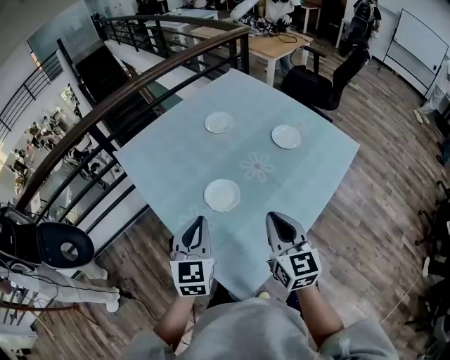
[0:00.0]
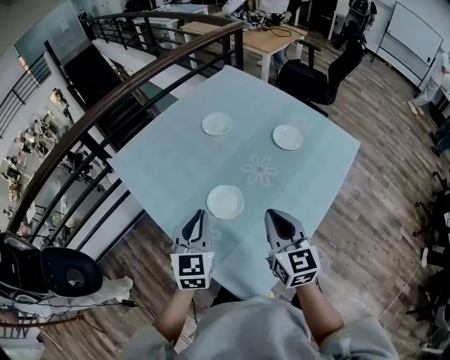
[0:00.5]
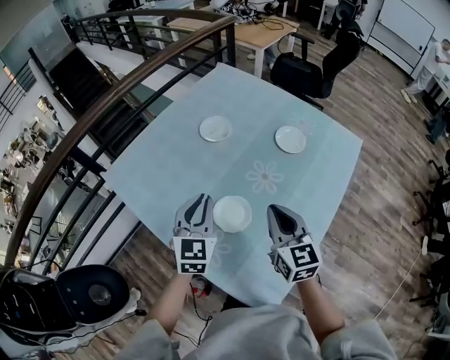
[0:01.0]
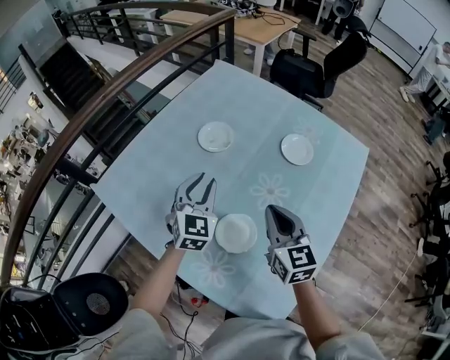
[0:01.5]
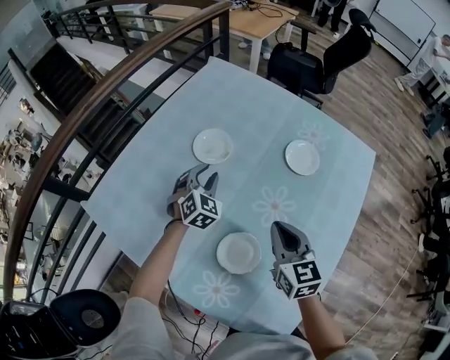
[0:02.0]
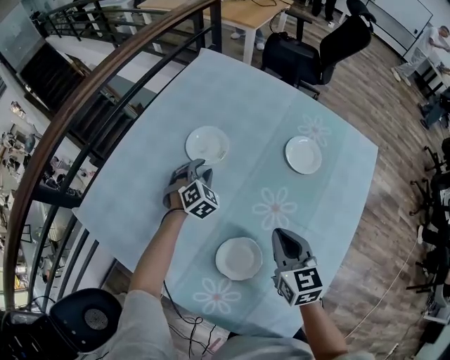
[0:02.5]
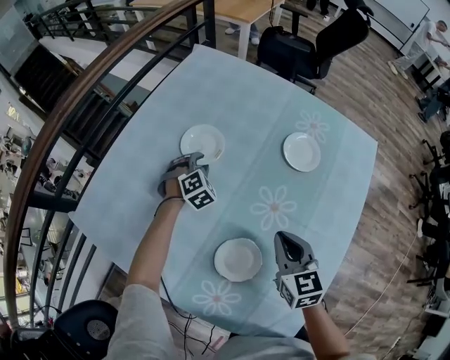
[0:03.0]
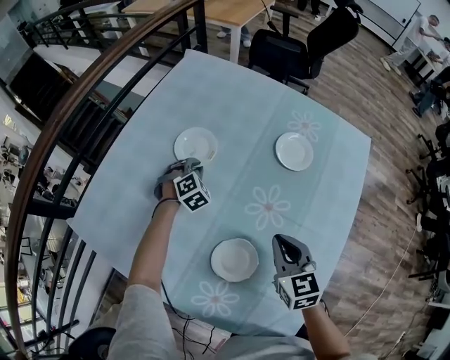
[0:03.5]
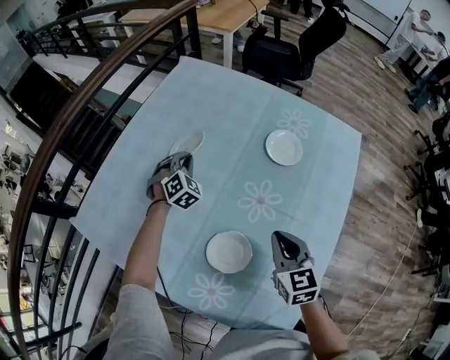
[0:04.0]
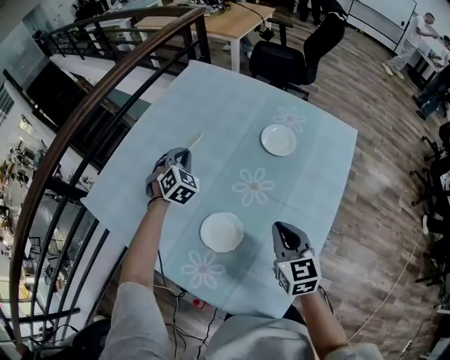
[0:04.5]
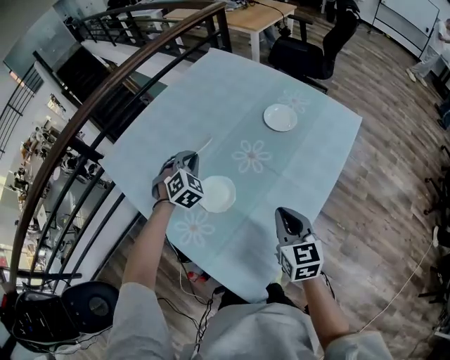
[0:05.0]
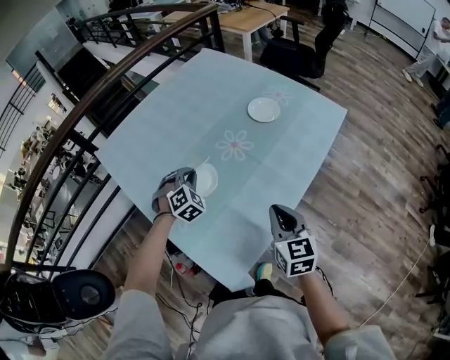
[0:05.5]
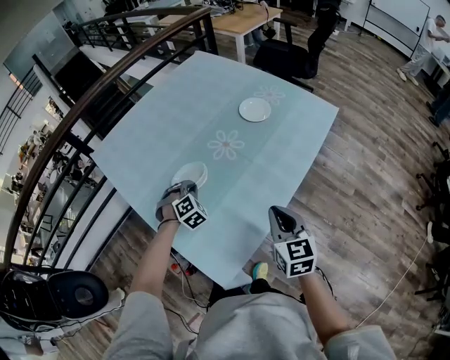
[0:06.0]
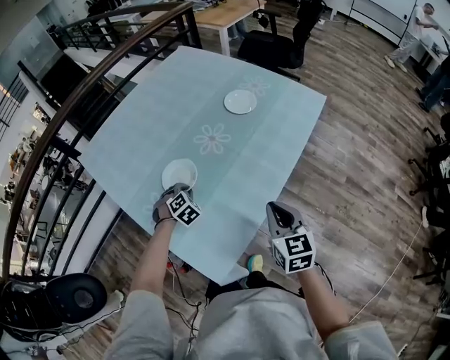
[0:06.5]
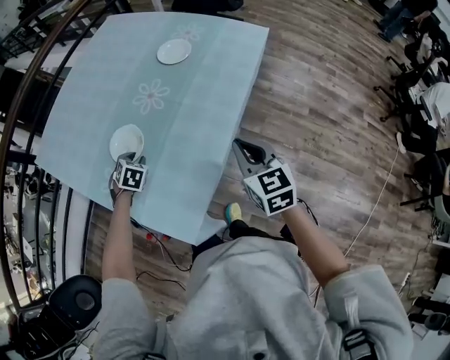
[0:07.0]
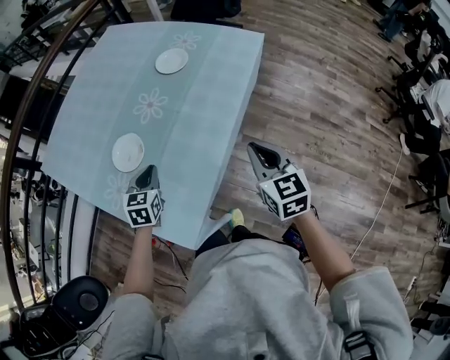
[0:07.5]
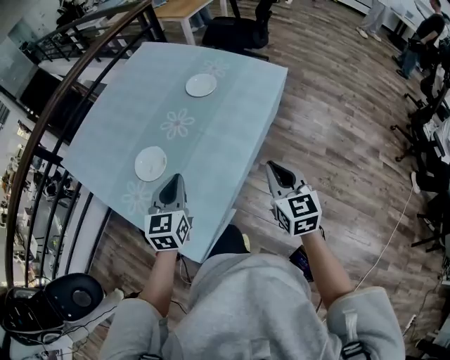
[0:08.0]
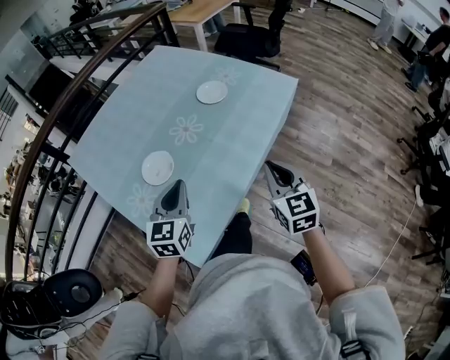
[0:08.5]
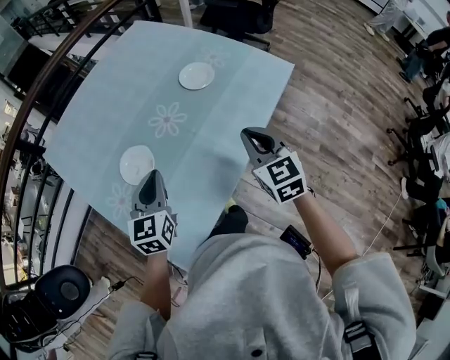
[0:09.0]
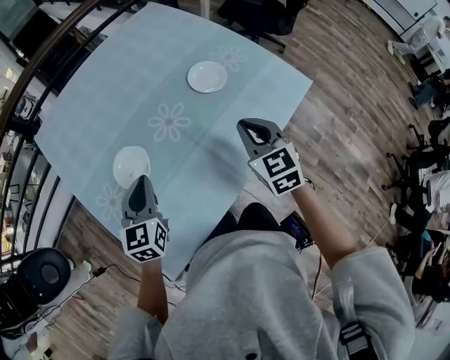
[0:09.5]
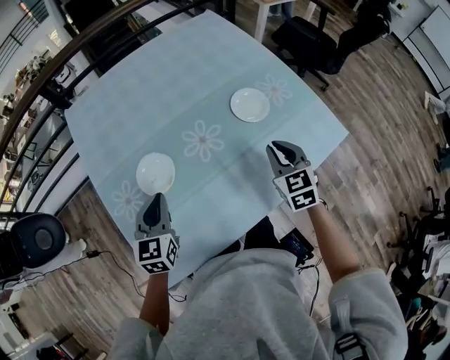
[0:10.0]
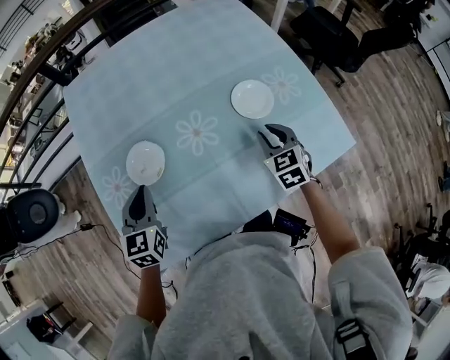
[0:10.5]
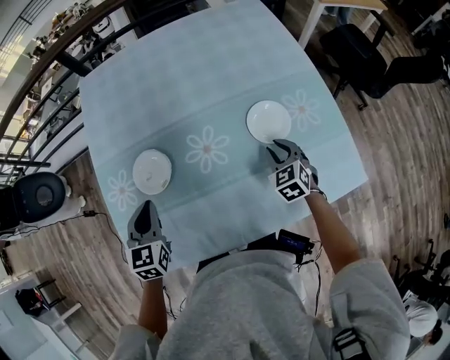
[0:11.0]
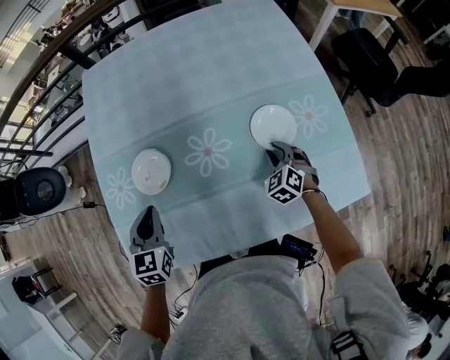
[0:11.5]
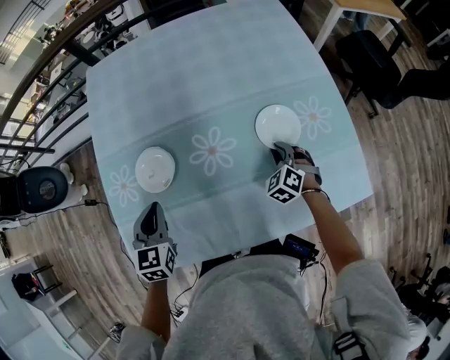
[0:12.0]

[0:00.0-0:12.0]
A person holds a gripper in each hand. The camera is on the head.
0:00.0 to 0:02.0: The left gripper moves forward and downward, about 50 cm, swivels approximately 40 degrees, and opens its fingers, while the right gripper shifts roughly 25 cm forward and downward, and turns by approximately 20 degrees.
0:02.0 to 0:04.0: The left gripper moves forward, roughly 5 cm, goes downward and returns, approximately 10 cm each way, and closes up, while the right gripper shifts by some 5 cm.
0:04.0 to 0:06.0: The left gripper goes some 40 cm backward; the right gripper is displaced backward and to the right by approximately 25 cm.
0:06.0 to 0:08.0: The right gripper shifts about 15 cm to the right; the left gripper shifts roughly 25 cm upward, to the right and backward, twists about 50 degrees counterclockwise, seen from behind, and opens, then closes again.
0:08.0 to 0:10.0: The left gripper ends up about 10 cm from where it was, and rotates some 30 degrees; the right gripper ends up about 30 cm from where it was, and changes its angle by some 40 degrees.
0:10.0 to 0:12.0: The left gripper rotates some 20 degrees, while the right gripper is displaced downward and forward by some 20 cm, and twists roughly 40 degrees counterclockwise, seen from behind.

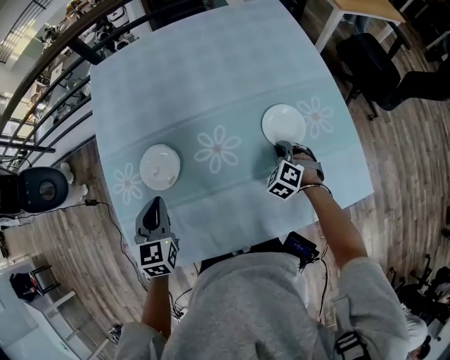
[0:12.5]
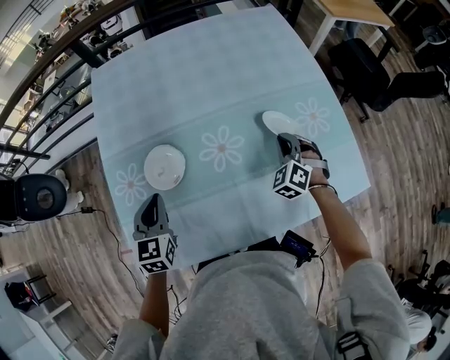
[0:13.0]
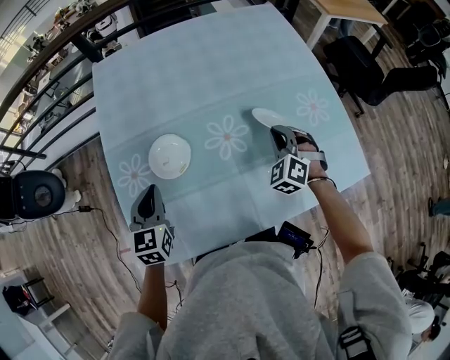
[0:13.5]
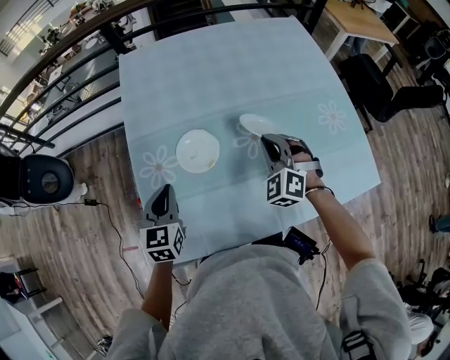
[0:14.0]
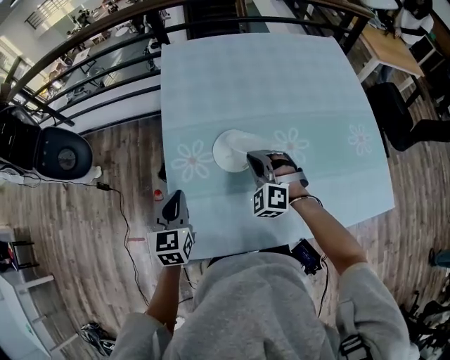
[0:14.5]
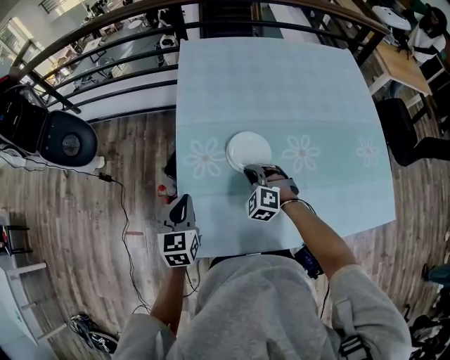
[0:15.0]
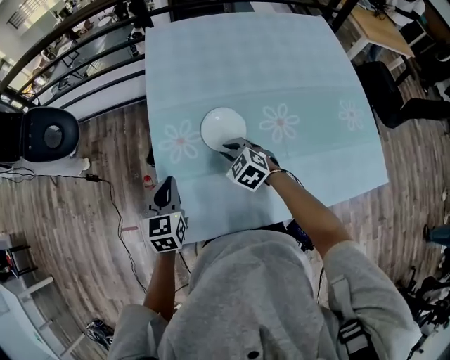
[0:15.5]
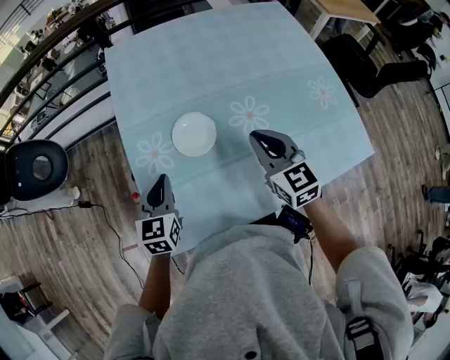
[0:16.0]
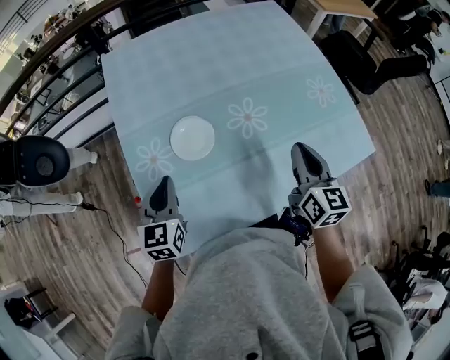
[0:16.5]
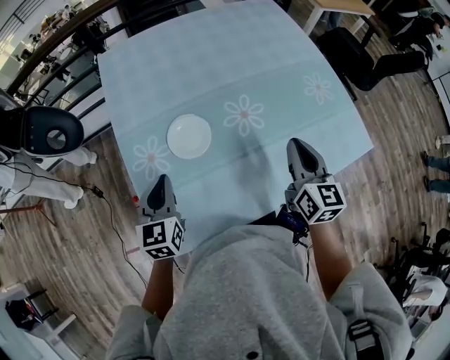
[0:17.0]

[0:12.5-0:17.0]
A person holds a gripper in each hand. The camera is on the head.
0:12.5 to 0:14.5: The right gripper travels to the left by approximately 35 cm, and turns by some 30 degrees. Meanwhile the left gripper moves to the left, about 20 cm.
0:14.5 to 0:17.0: The right gripper changes place by approximately 25 cm, and rotates around the line of its fingers by roughly 80 degrees, clockwise from behind, while the left gripper moves approximately 10 cm.

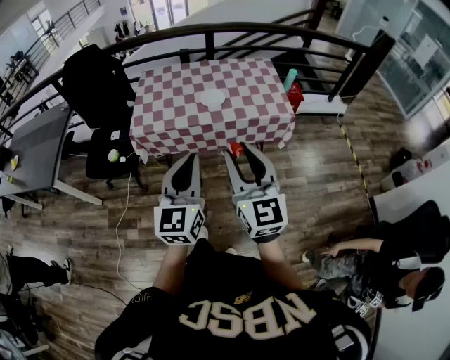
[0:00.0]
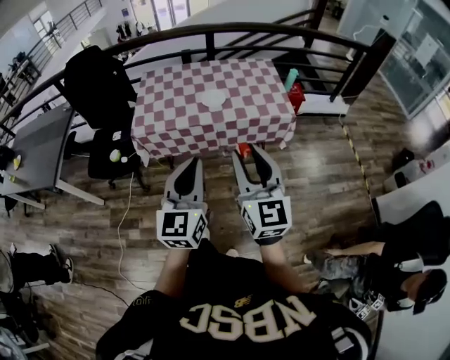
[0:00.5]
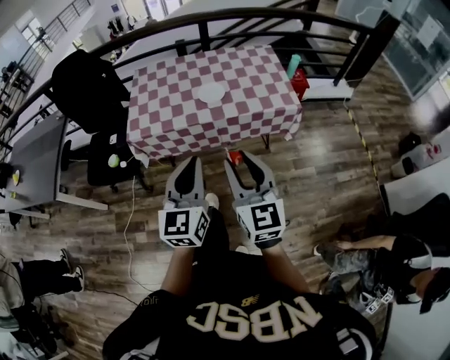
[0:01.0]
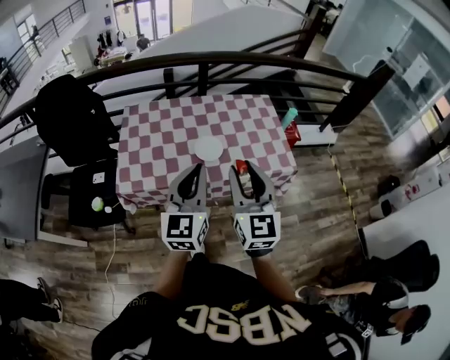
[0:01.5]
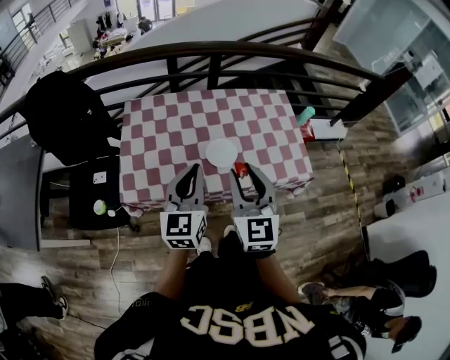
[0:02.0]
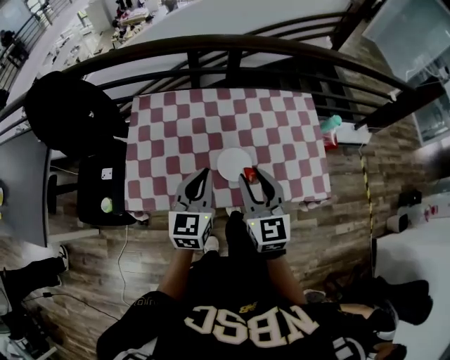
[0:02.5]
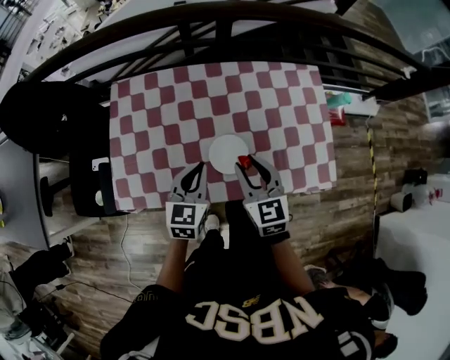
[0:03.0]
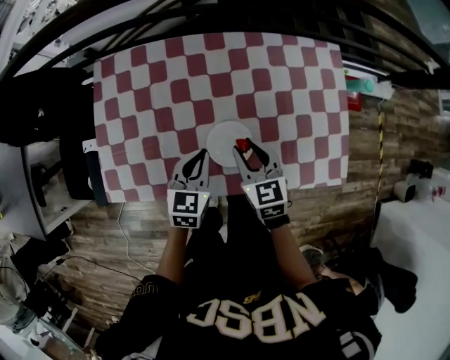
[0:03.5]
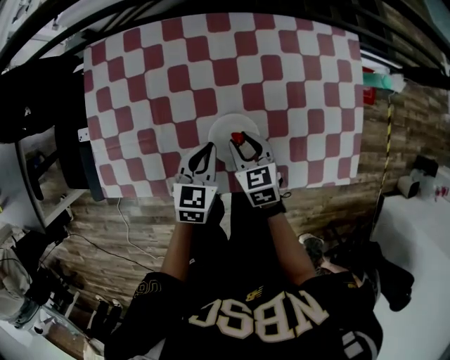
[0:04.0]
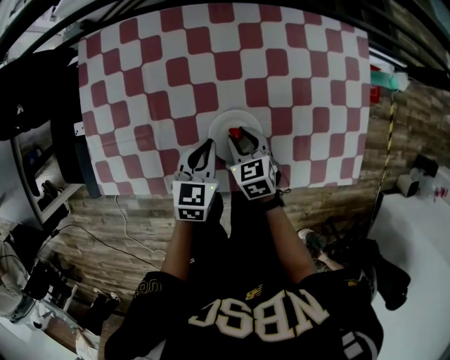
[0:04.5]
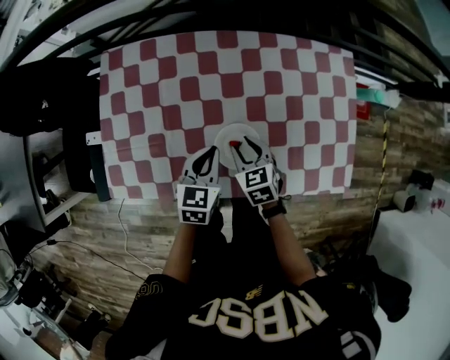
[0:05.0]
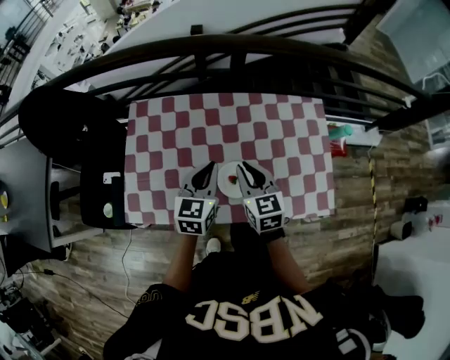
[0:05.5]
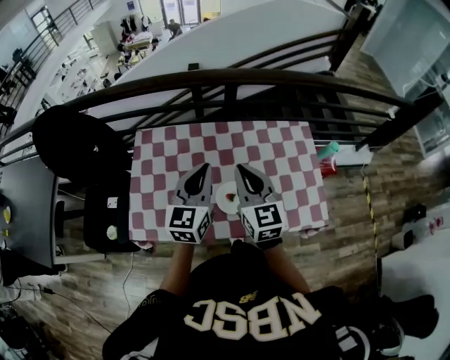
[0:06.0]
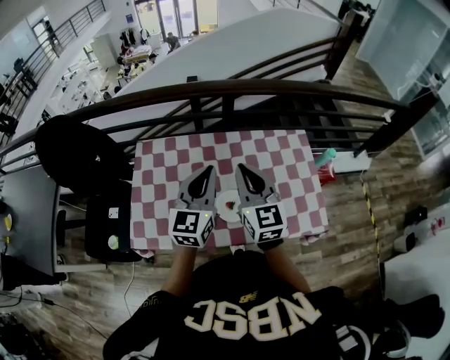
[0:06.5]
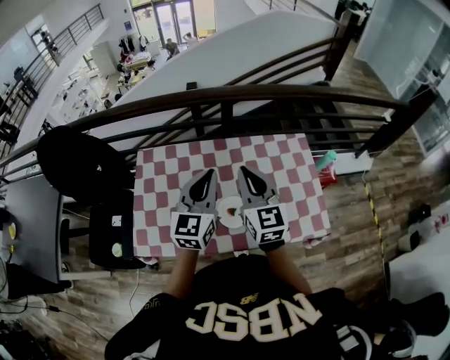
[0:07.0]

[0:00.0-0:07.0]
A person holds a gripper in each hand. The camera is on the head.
0:00.0 to 0:02.0: The two grippers go about 40 cm forward.
0:02.0 to 0:03.5: The grippers both shift downward and forward by about 35 cm. The left gripper angles its fingers downward, by approximately 30 degrees; the right gripper angles its fingers downward, by about 30 degrees.
0:03.5 to 0:05.0: The right gripper moves downward, about 10 cm.
0:05.0 to 0:07.0: The two grippers go some 35 cm upward. The left gripper angles its fingers upward, by approximately 40 degrees; the right gripper points its fingers some 50 degrees further upward, and closes.

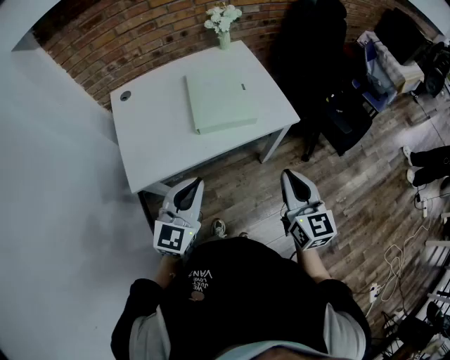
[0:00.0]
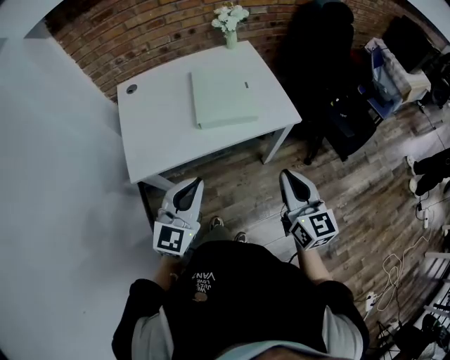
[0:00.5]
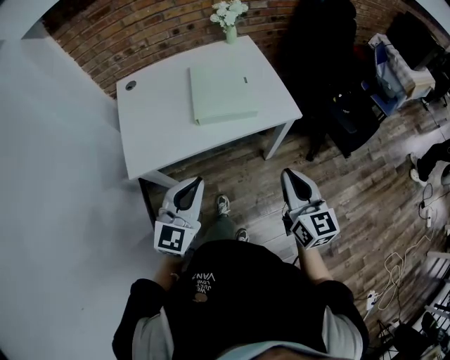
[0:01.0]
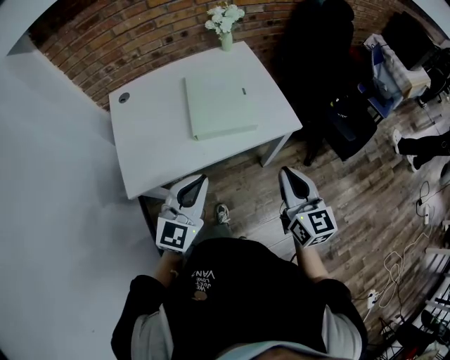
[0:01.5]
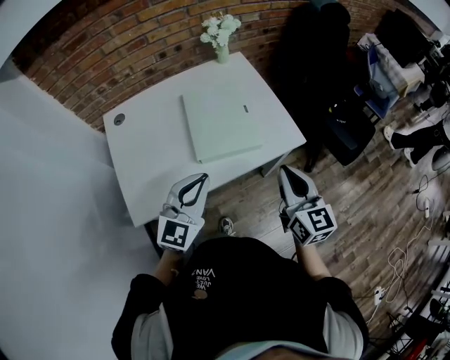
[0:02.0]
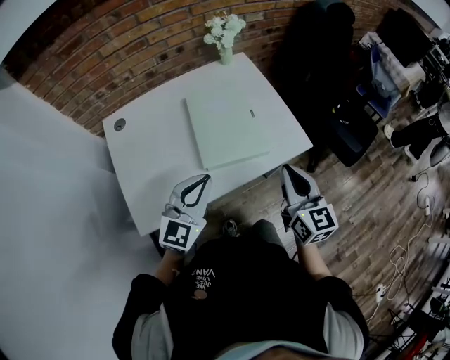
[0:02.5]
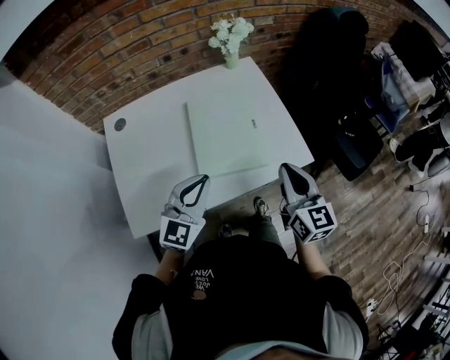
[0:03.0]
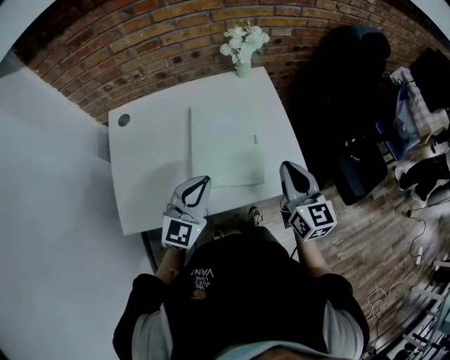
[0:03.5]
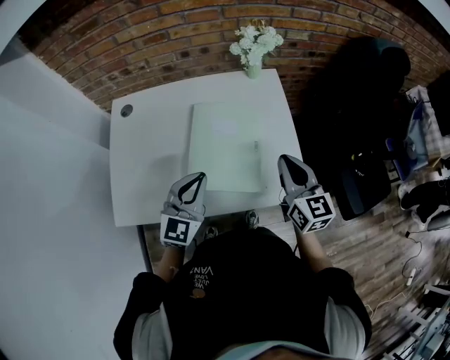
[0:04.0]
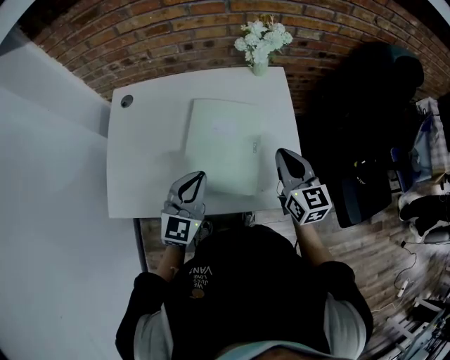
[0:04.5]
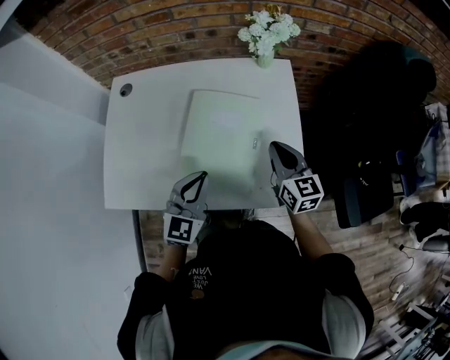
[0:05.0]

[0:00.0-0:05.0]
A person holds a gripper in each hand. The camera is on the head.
0:00.0 to 0:02.5: The two grippers go some 15 cm forward.
0:02.5 to 0:05.0: The left gripper moves roughly 15 cm, and turns by some 30 degrees; the right gripper moves roughly 25 cm, and turns by roughly 30 degrees.
